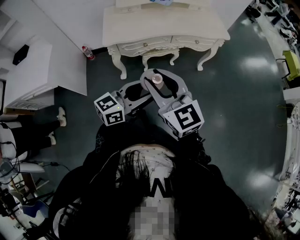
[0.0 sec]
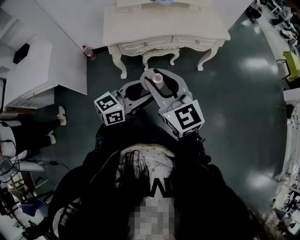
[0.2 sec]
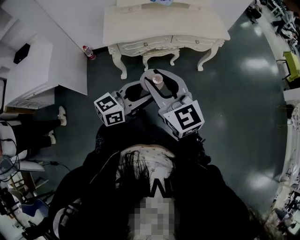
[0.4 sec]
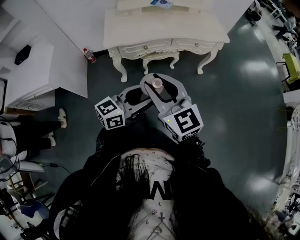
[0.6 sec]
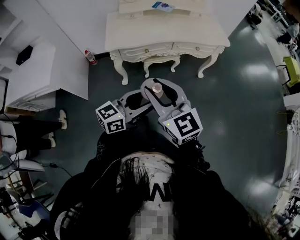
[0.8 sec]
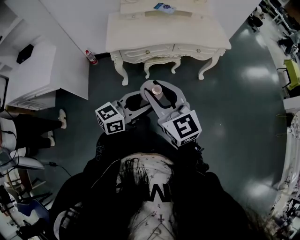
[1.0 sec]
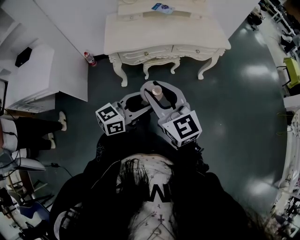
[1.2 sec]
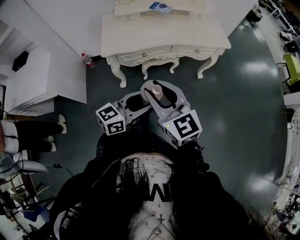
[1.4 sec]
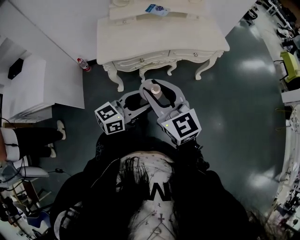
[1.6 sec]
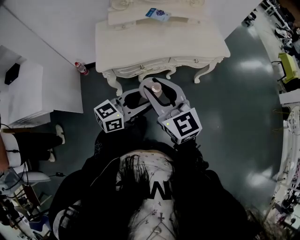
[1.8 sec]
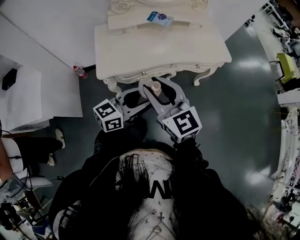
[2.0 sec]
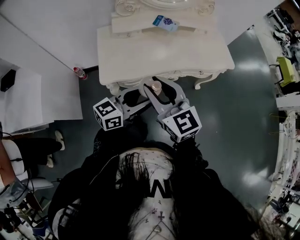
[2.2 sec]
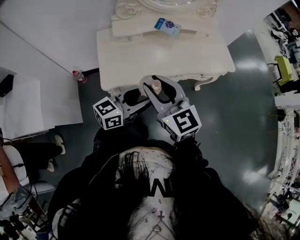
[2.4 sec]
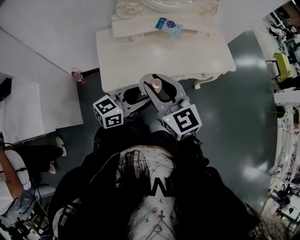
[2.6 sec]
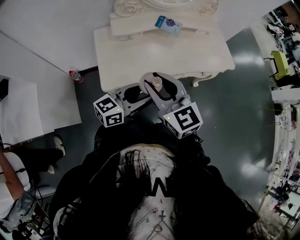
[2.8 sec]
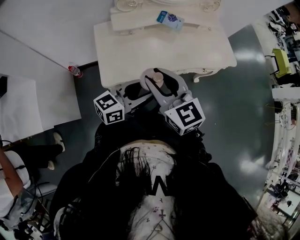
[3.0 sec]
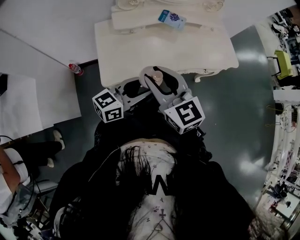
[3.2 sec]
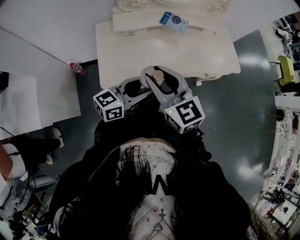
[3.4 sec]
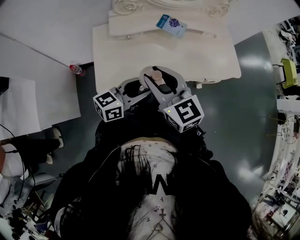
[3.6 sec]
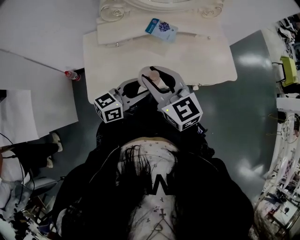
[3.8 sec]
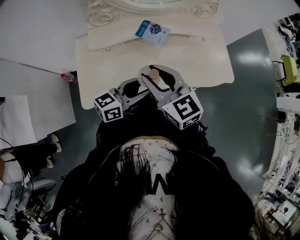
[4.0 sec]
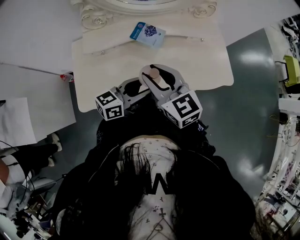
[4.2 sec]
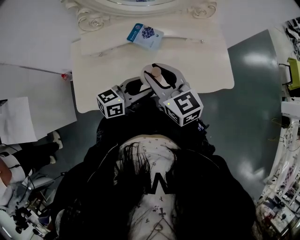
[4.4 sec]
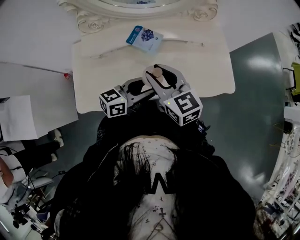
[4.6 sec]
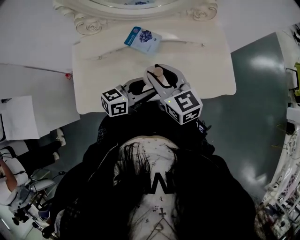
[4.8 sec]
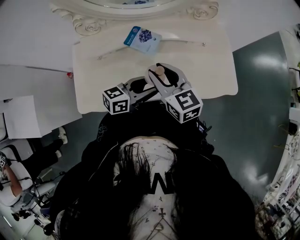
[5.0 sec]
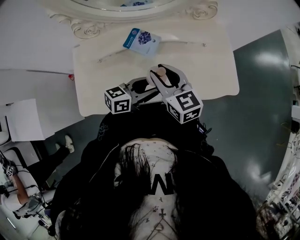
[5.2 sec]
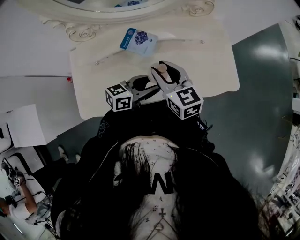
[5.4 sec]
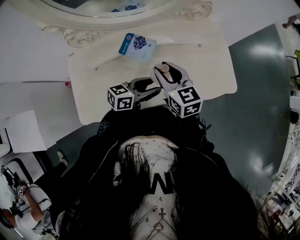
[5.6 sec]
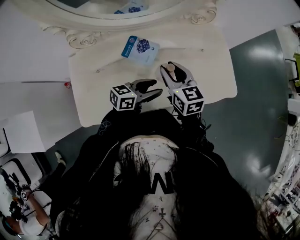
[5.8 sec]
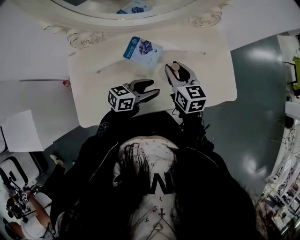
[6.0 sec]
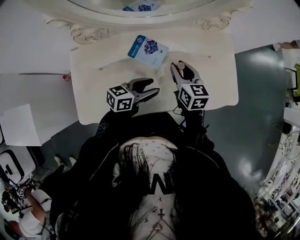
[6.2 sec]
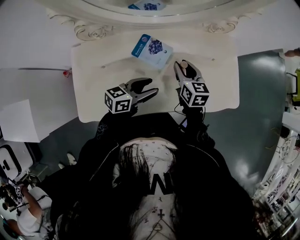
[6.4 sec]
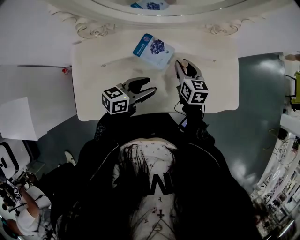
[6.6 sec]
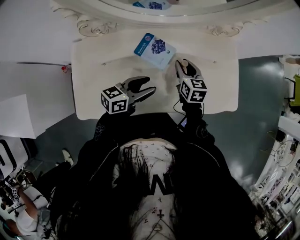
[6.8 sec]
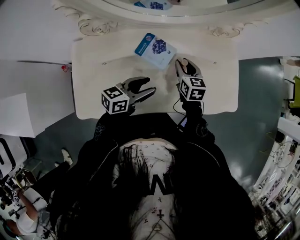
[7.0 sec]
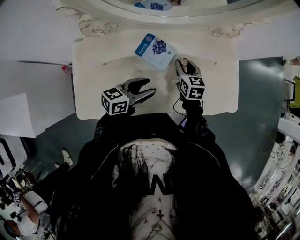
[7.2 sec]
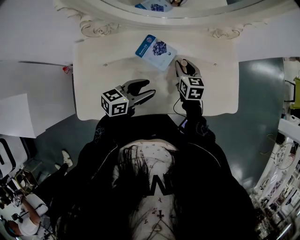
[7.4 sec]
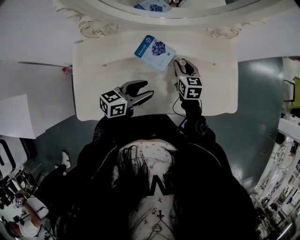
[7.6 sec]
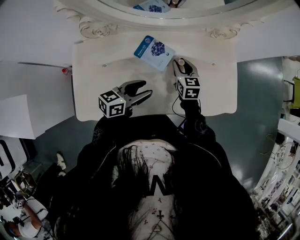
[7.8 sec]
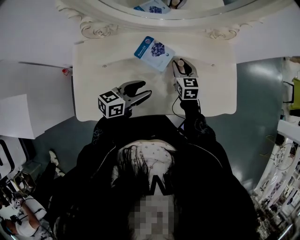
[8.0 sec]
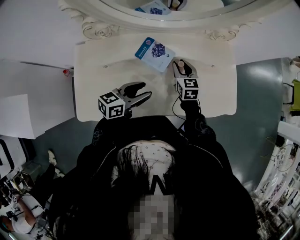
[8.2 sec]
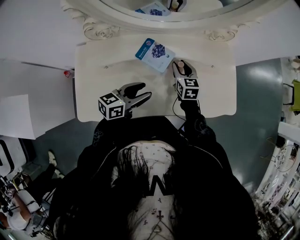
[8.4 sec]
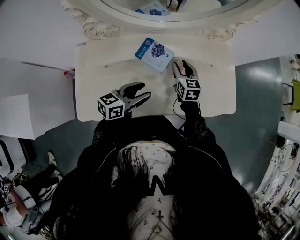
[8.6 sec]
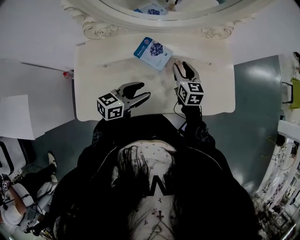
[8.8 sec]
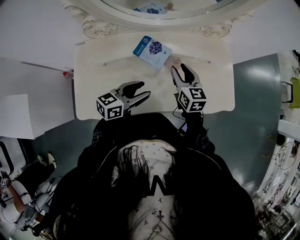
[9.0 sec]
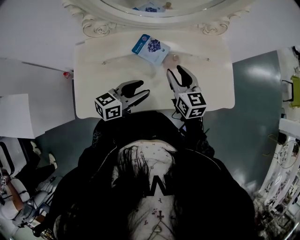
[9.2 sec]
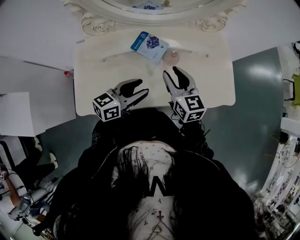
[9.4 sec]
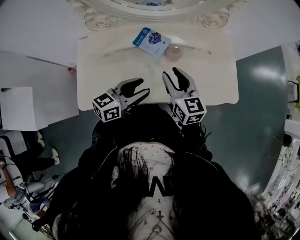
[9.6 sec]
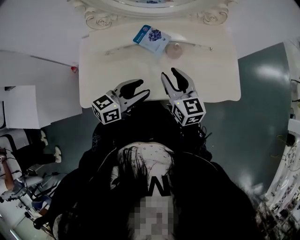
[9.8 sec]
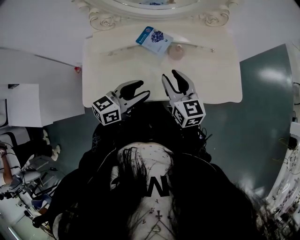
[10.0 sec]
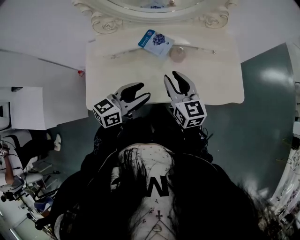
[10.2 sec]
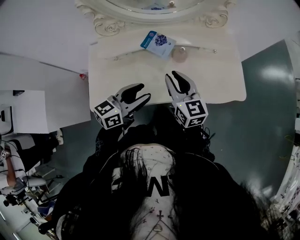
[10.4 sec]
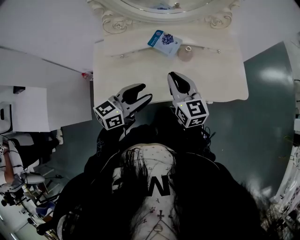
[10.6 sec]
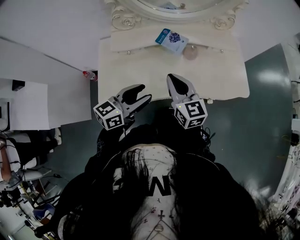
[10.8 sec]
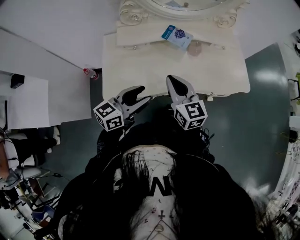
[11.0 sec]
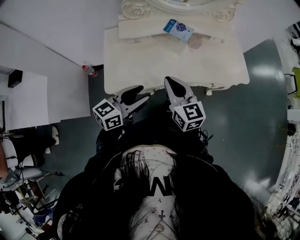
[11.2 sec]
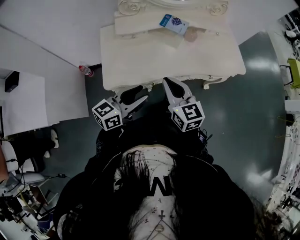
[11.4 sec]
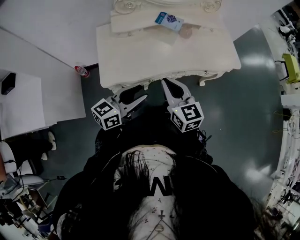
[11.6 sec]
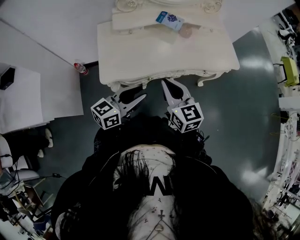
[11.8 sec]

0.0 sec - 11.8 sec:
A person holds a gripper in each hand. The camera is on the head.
0.0 sec - 1.4 sec: The grippers move only a little.
1.4 sec - 3.0 sec: Both grippers move forward and to the left, about 30 cm.
3.0 sec - 4.4 sec: Both grippers travel together forward and to the right, roughly 25 cm.
4.4 sec - 6.0 sec: The two grippers go roughly 15 cm forward and downward. The right gripper swivels about 20 degrees.
6.0 sec - 7.4 sec: The right gripper moves downward and forward, approximately 10 cm. The left gripper travels to the left by roughly 5 cm.
7.4 sec - 8.8 sec: The grippers move only a little.
8.8 sec - 10.4 sec: The right gripper shifts approximately 20 cm backward and upward, while the left gripper moves backward and upward, some 10 cm.
10.4 sec - 11.8 sec: The left gripper goes some 25 cm backward and to the left. Meanwhile the right gripper is displaced backward by some 25 cm, and closes.

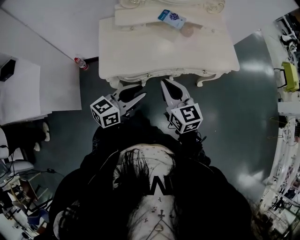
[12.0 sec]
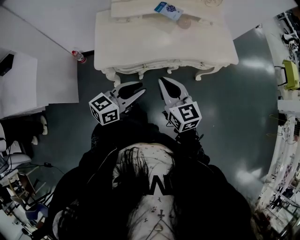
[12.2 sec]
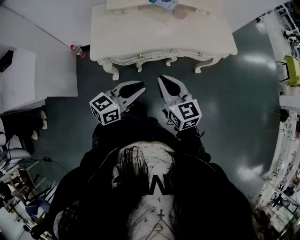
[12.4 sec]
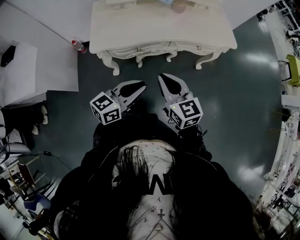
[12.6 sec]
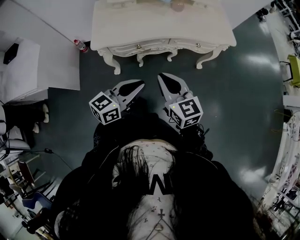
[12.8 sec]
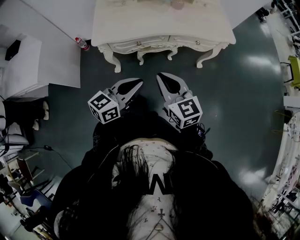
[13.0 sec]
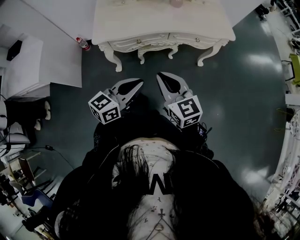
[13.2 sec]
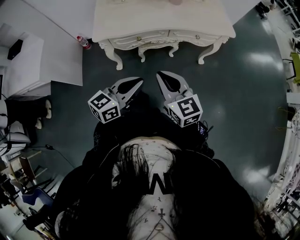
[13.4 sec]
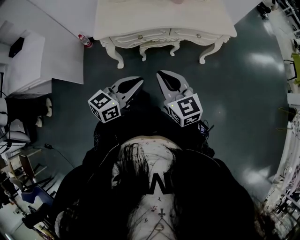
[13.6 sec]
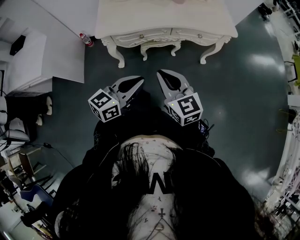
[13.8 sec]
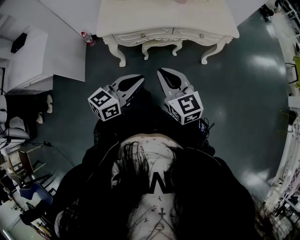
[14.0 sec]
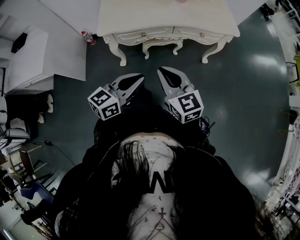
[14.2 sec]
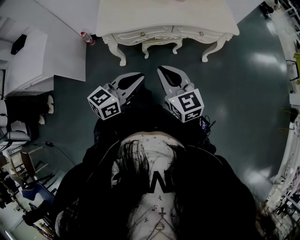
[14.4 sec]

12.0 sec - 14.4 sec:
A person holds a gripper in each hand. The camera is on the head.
12.0 sec - 13.2 sec: Both grippers travel together backward and to the right, about 20 cm. The left gripper closes up.
13.2 sec - 14.4 sec: There are only small adjustments of the grippers.

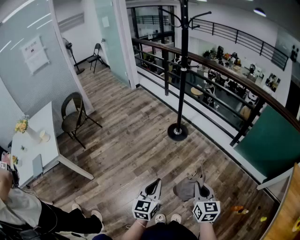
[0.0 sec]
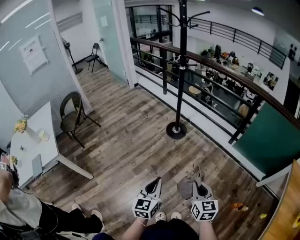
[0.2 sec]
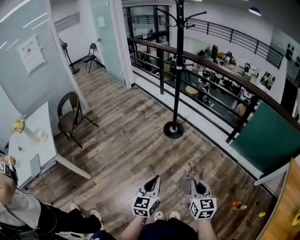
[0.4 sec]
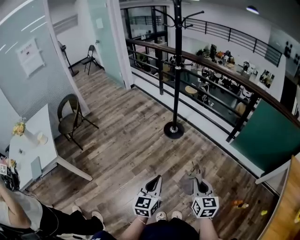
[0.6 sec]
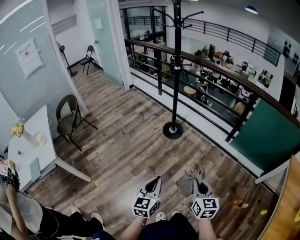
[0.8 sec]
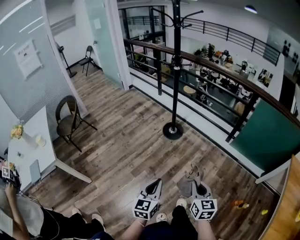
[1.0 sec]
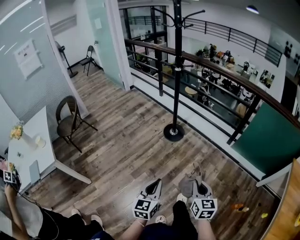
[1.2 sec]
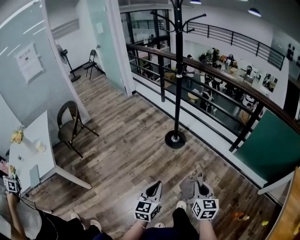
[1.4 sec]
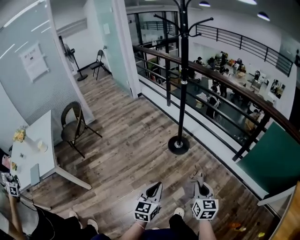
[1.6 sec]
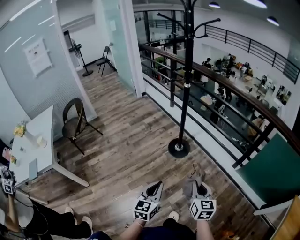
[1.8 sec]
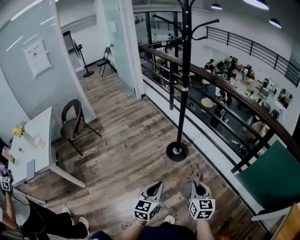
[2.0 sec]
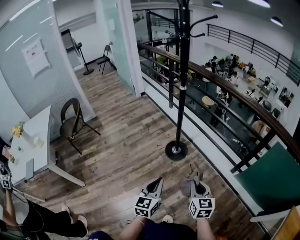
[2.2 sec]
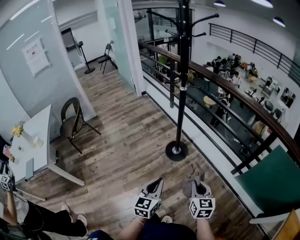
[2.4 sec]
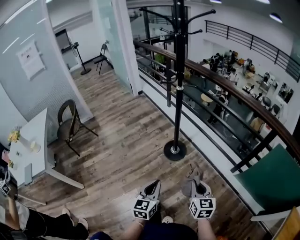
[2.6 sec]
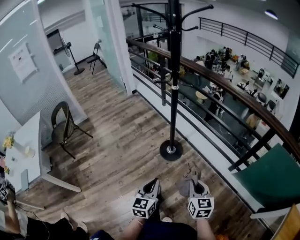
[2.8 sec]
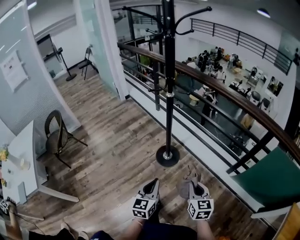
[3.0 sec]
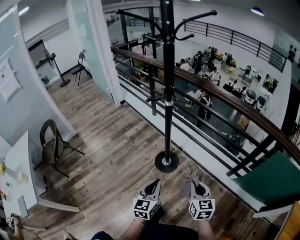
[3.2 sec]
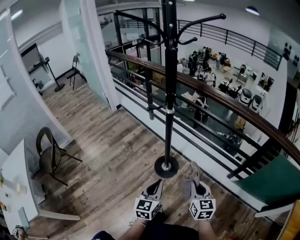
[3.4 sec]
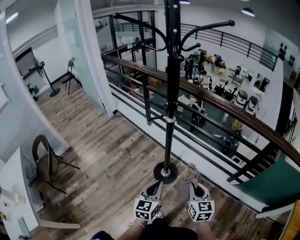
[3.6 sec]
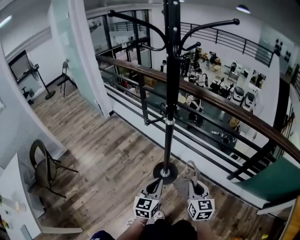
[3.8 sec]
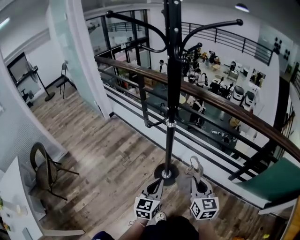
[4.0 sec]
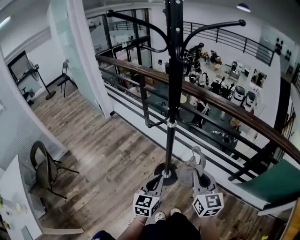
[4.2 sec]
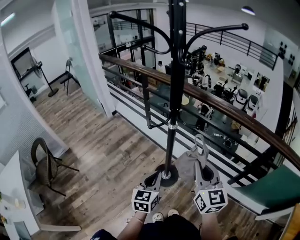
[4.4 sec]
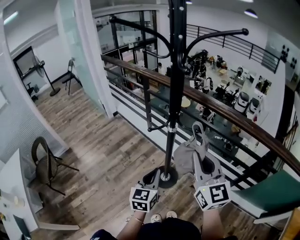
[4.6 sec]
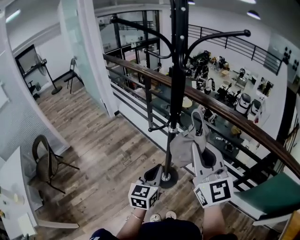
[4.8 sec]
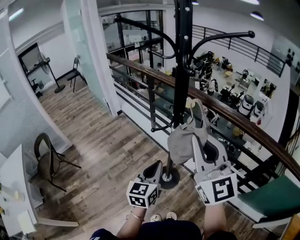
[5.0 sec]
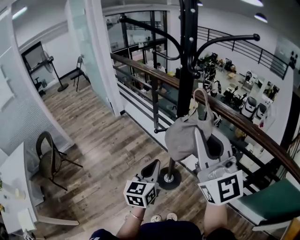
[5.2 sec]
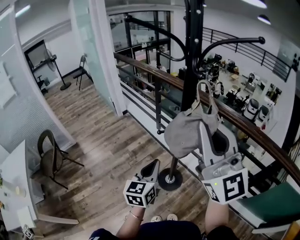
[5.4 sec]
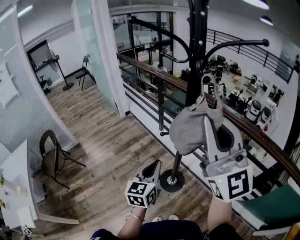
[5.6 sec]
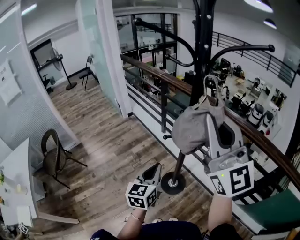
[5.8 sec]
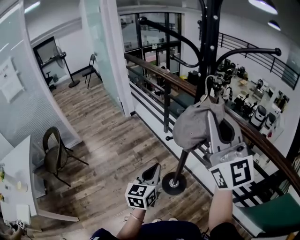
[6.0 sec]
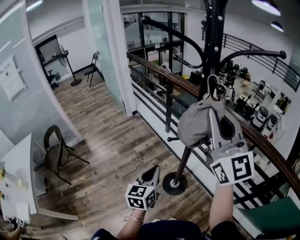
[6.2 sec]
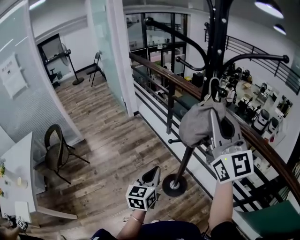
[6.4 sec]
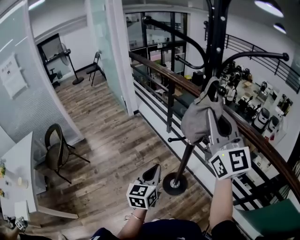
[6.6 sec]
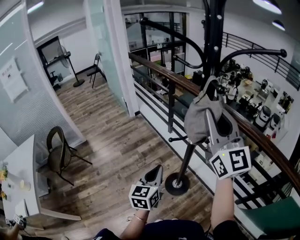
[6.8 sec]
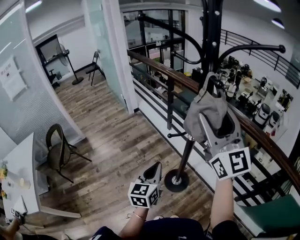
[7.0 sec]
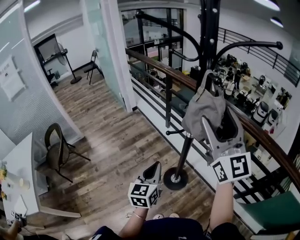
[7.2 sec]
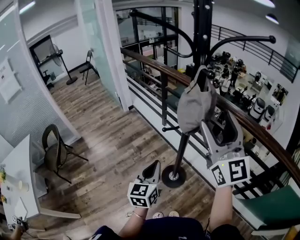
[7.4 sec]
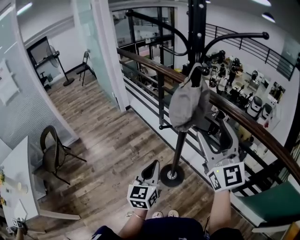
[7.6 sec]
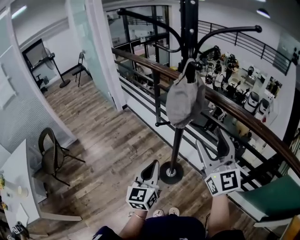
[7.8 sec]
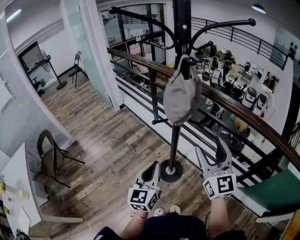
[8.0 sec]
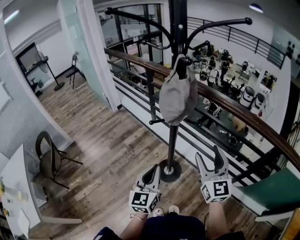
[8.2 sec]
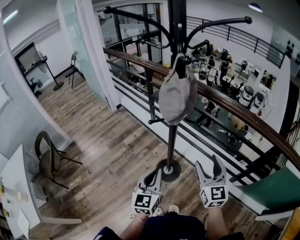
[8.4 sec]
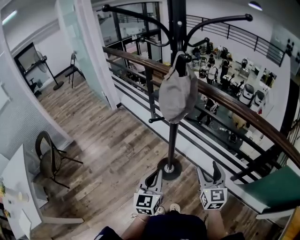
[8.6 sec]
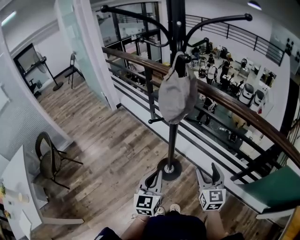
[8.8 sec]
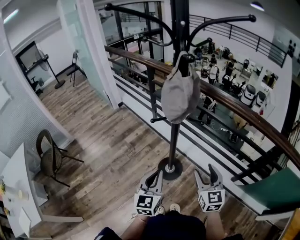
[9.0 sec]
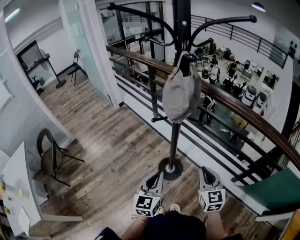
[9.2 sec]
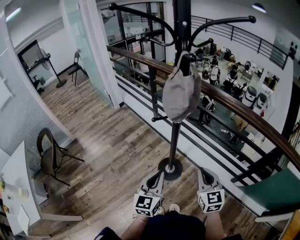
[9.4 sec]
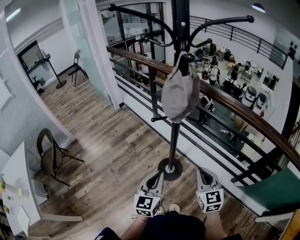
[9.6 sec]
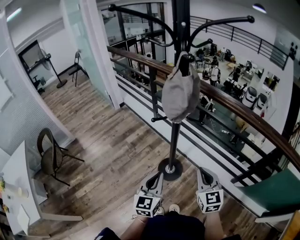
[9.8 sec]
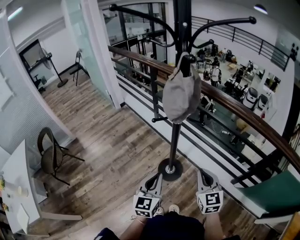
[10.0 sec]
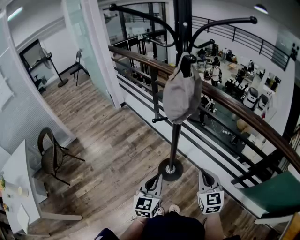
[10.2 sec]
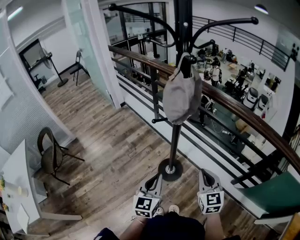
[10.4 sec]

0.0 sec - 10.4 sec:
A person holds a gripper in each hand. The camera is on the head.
0.0 sec - 1.4 sec: The grippers both shift forward by approximately 5 cm.
1.4 sec - 3.0 sec: The two grippers go approximately 30 cm forward.
3.0 sec - 4.4 sec: The right gripper goes roughly 30 cm forward, upward and to the left, and changes its angle by some 20 degrees, while the left gripper moves forward, roughly 25 cm.
4.4 sec - 6.0 sec: The left gripper travels upward, forward and to the left by about 10 cm. The right gripper is displaced upward by about 25 cm, and swivels roughly 40 degrees.
6.0 sec - 7.4 sec: The right gripper heads downward, covering approximately 5 cm, and opens.
7.4 sec - 9.0 sec: The left gripper travels backward and downward by roughly 10 cm, while the right gripper moves downward, about 30 cm, and angles its fingers downward, by some 30 degrees.
9.0 sec - 10.4 sec: The right gripper closes its fingers.
